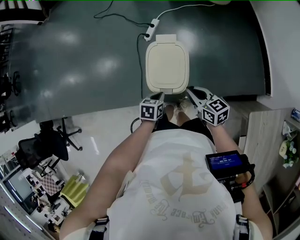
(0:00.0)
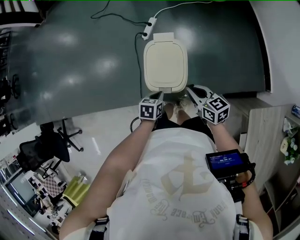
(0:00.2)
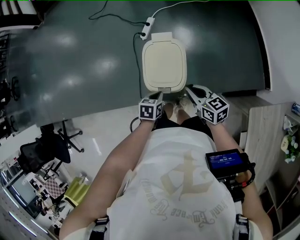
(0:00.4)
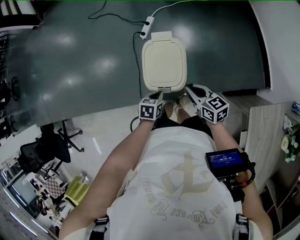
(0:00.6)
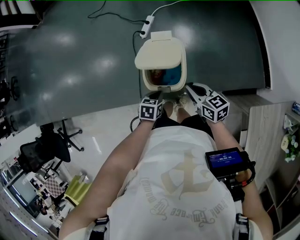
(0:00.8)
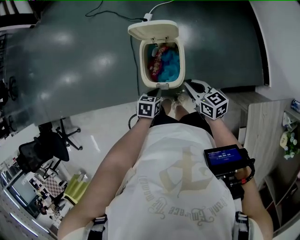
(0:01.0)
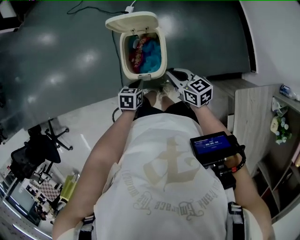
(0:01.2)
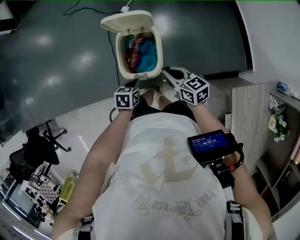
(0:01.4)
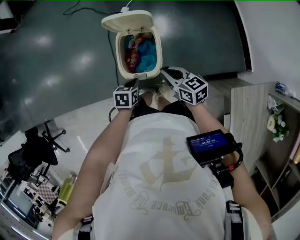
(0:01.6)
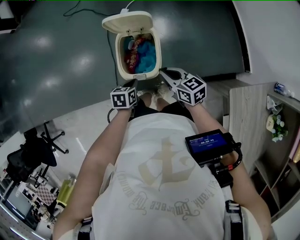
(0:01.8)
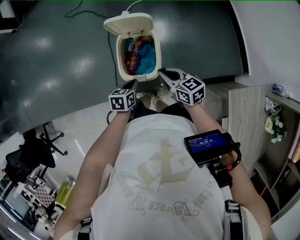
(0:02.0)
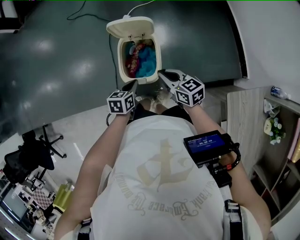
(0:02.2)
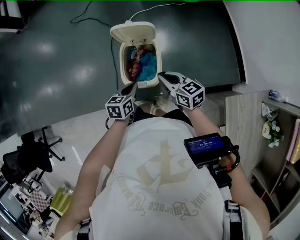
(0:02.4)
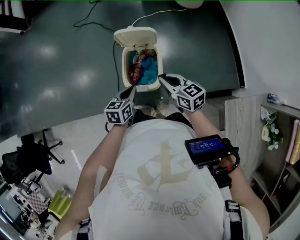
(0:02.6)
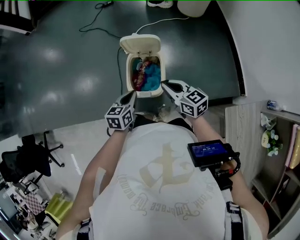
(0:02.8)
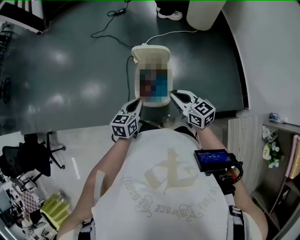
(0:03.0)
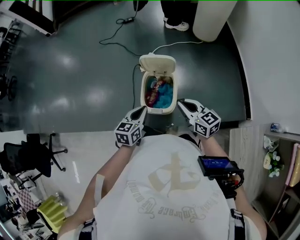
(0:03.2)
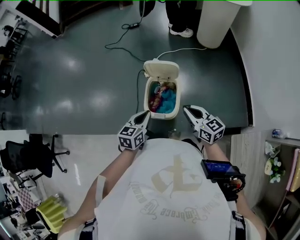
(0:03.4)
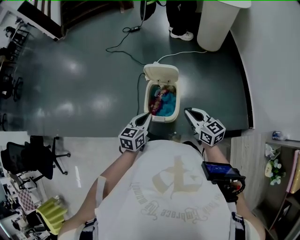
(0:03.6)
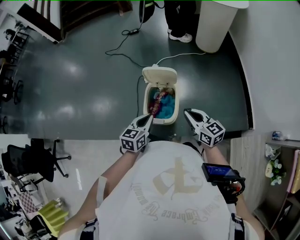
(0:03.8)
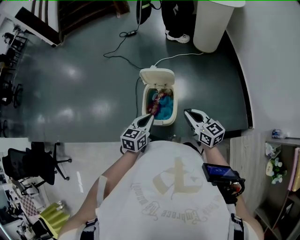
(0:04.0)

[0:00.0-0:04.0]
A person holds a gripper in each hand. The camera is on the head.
0:00.0 to 0:01.4: The grippers move only a little.
0:01.4 to 0:02.6: The right gripper goes some 10 cm upward; the left gripper is displaced upward by roughly 15 cm, and swivels approximately 20 degrees.
0:02.6 to 0:04.0: The right gripper is displaced upward and to the right by roughly 10 cm. The left gripper goes approximately 10 cm upward.

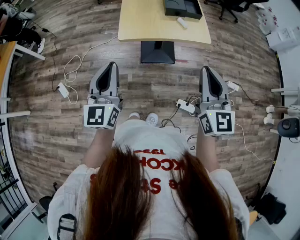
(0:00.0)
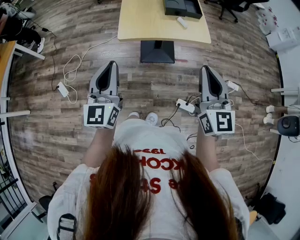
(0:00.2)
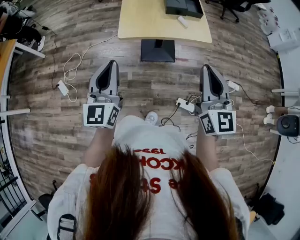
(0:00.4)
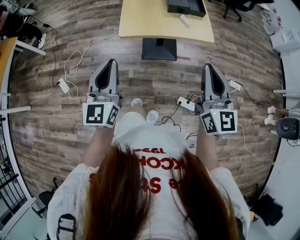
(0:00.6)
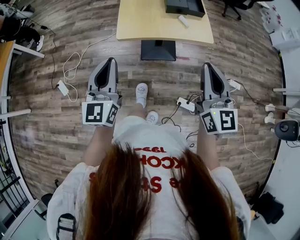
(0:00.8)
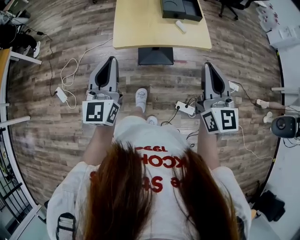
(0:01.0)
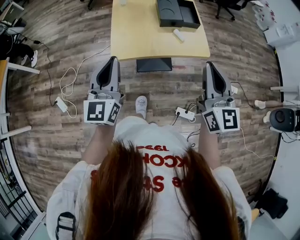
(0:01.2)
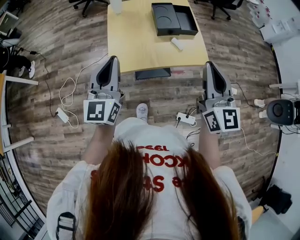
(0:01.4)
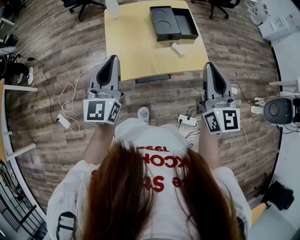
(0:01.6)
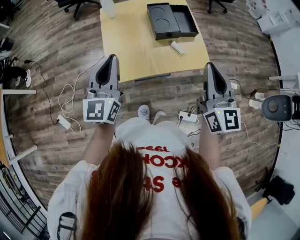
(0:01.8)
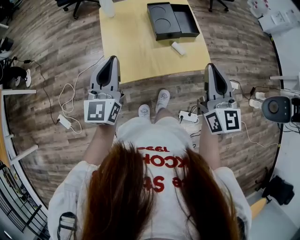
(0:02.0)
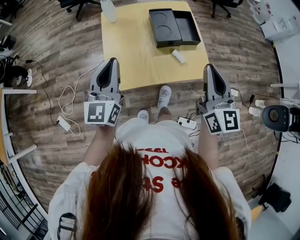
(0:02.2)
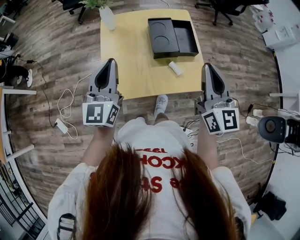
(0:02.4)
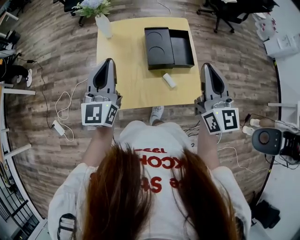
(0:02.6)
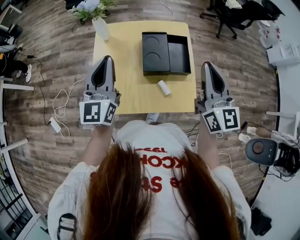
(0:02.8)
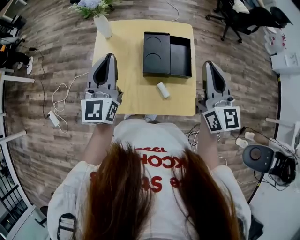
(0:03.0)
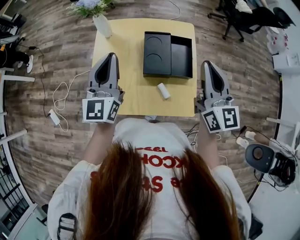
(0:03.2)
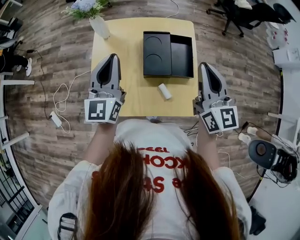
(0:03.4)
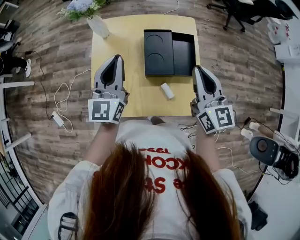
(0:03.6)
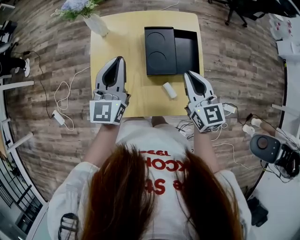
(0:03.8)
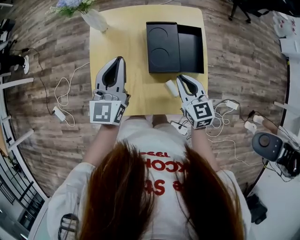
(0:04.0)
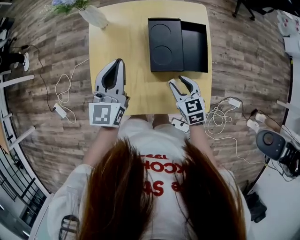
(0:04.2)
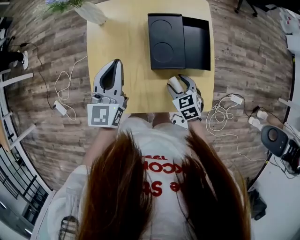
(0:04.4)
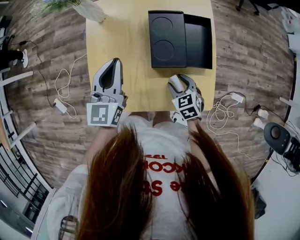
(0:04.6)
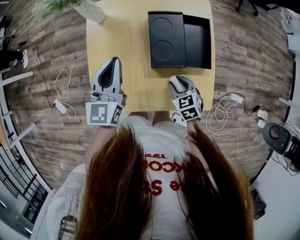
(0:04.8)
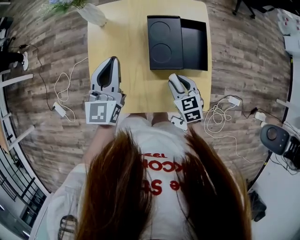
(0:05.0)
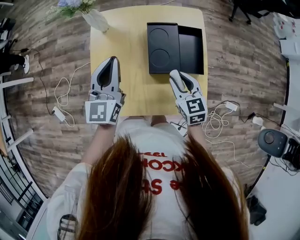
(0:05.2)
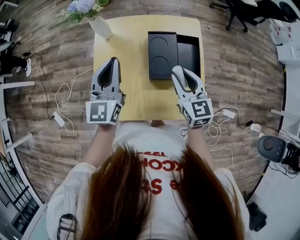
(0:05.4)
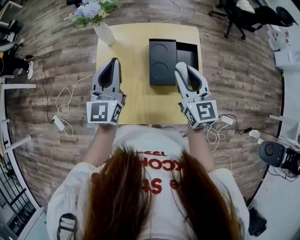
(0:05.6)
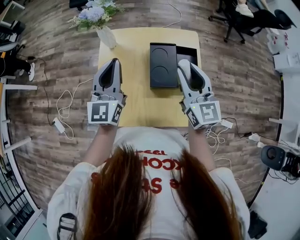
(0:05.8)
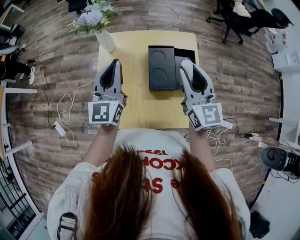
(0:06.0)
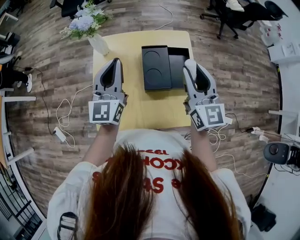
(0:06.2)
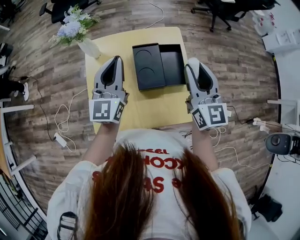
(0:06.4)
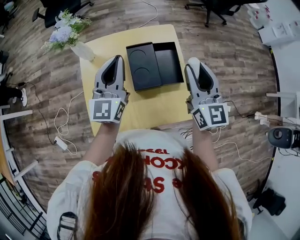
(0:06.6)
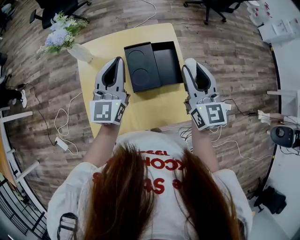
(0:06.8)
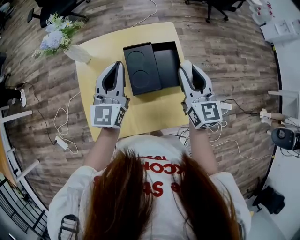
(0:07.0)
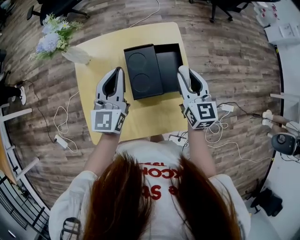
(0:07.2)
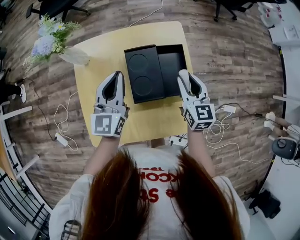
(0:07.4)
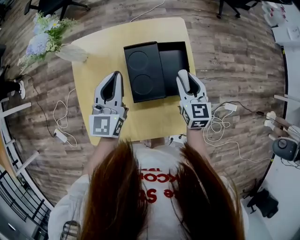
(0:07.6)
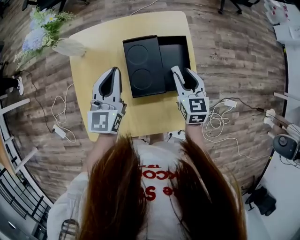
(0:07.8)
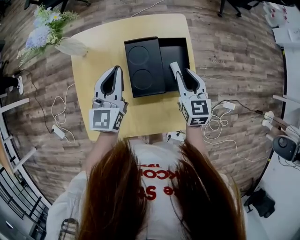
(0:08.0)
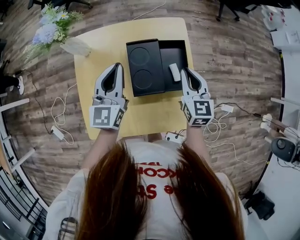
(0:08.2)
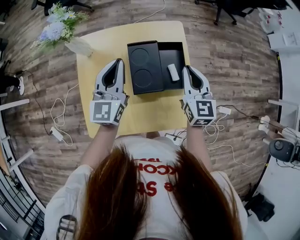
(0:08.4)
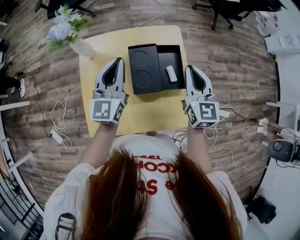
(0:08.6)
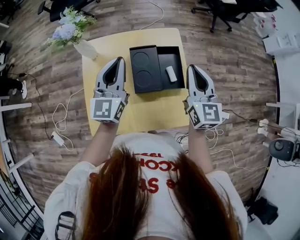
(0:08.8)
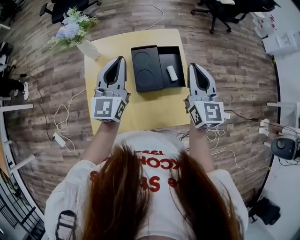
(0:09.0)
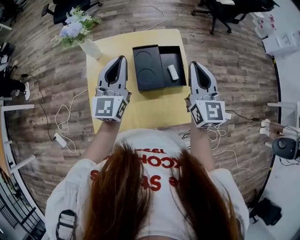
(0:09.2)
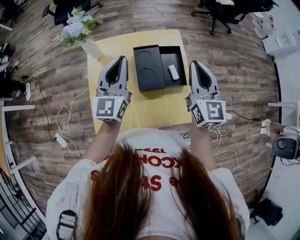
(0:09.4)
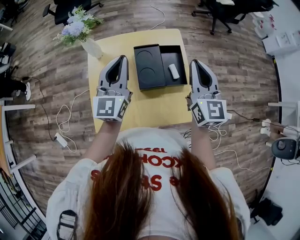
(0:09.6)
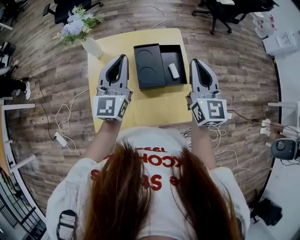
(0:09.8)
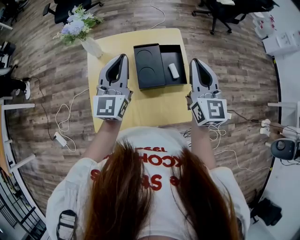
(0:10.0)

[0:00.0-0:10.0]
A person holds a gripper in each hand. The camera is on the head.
0:00.0 to 0:01.4: Both grippers move forward, roughly 20 cm.
0:01.4 to 0:02.8: The two grippers go some 25 cm forward.
0:02.8 to 0:04.2: The left gripper is displaced downward by some 10 cm. The right gripper is displaced downward by some 30 cm, tilts its fingers about 40 degrees downward, and opens up.
0:04.2 to 0:05.8: The left gripper goes roughly 10 cm upward. Meanwhile the right gripper is displaced upward by approximately 25 cm, and tips its fingers upward by approximately 40 degrees.
0:05.8 to 0:07.2: The left gripper shifts about 15 cm to the right, downward and forward. The right gripper moves downward and to the right, about 15 cm.
0:07.2 to 0:08.6: The right gripper is displaced upward by about 5 cm, and closes up.
0:08.6 to 0:10.0: The right gripper heads upward, covering roughly 10 cm, while the left gripper moves roughly 5 cm.

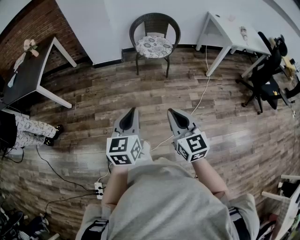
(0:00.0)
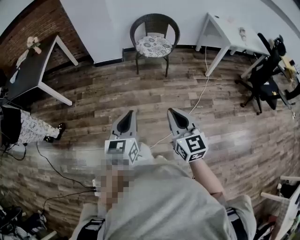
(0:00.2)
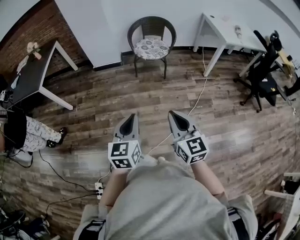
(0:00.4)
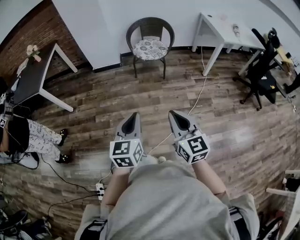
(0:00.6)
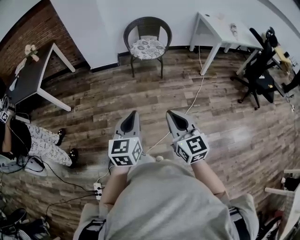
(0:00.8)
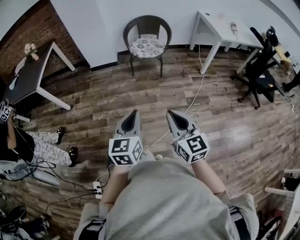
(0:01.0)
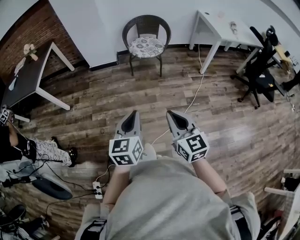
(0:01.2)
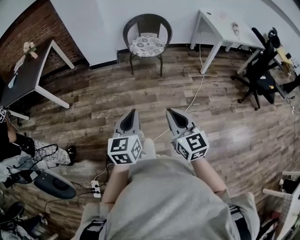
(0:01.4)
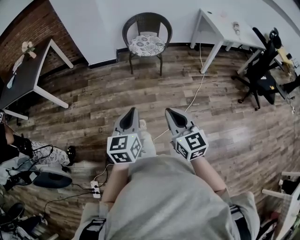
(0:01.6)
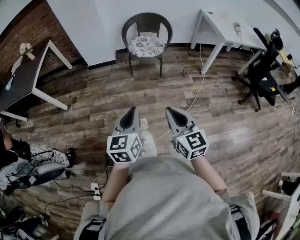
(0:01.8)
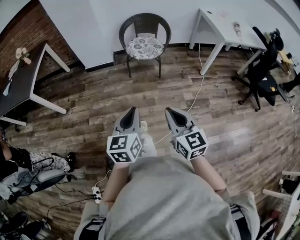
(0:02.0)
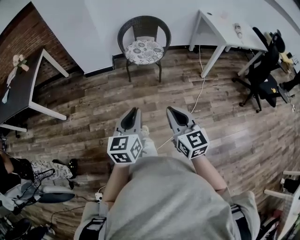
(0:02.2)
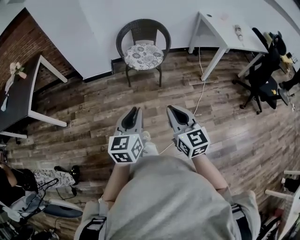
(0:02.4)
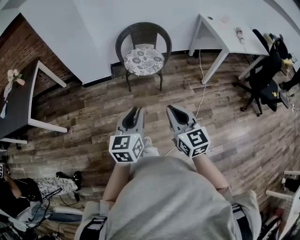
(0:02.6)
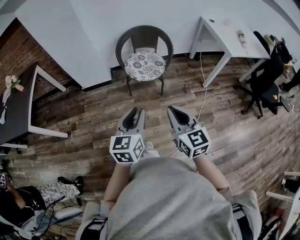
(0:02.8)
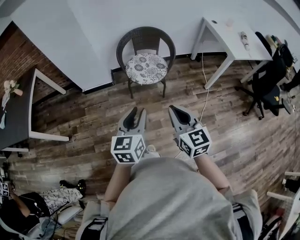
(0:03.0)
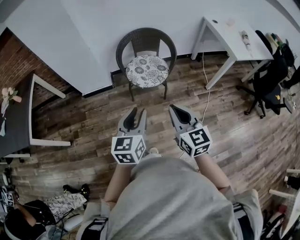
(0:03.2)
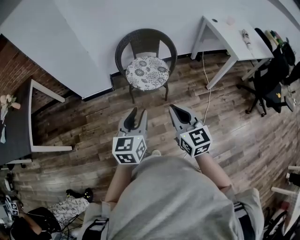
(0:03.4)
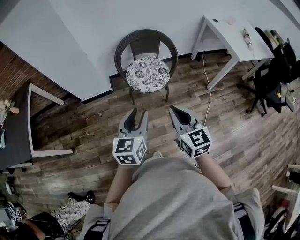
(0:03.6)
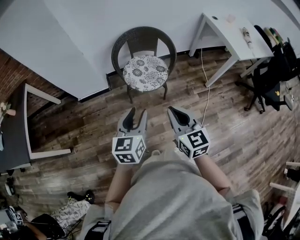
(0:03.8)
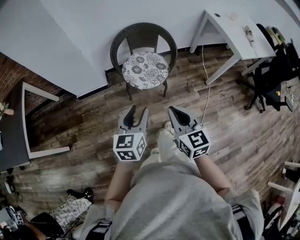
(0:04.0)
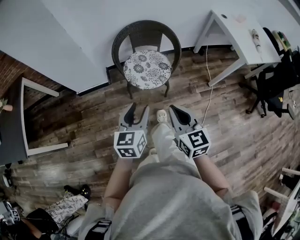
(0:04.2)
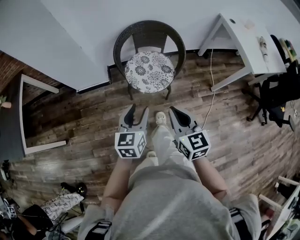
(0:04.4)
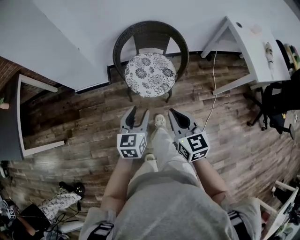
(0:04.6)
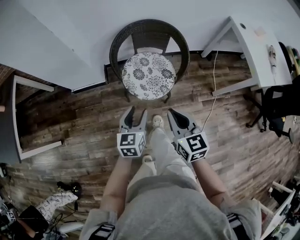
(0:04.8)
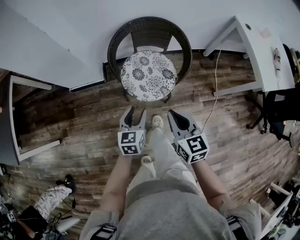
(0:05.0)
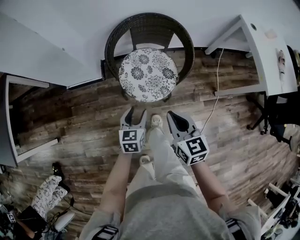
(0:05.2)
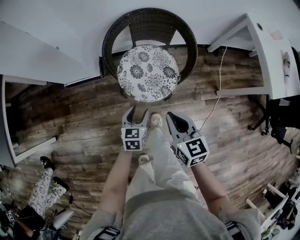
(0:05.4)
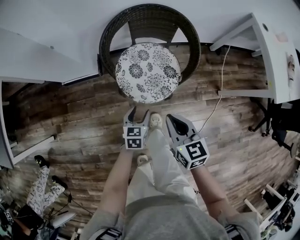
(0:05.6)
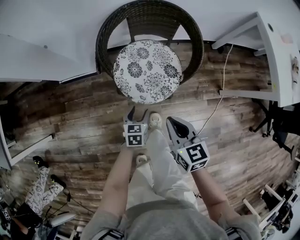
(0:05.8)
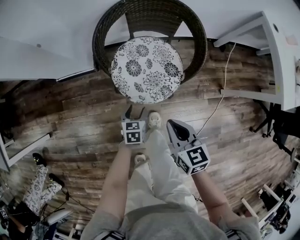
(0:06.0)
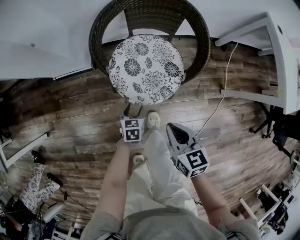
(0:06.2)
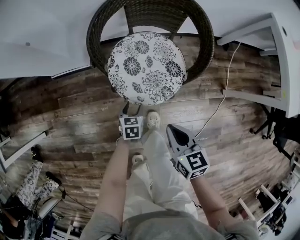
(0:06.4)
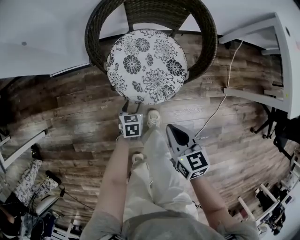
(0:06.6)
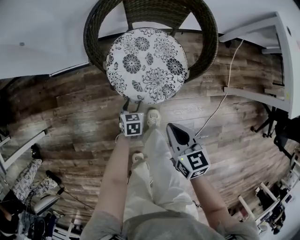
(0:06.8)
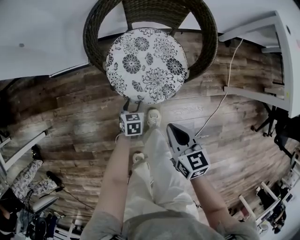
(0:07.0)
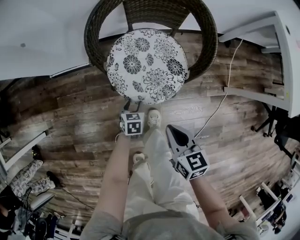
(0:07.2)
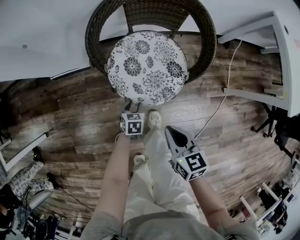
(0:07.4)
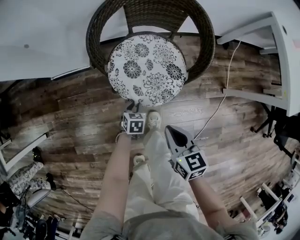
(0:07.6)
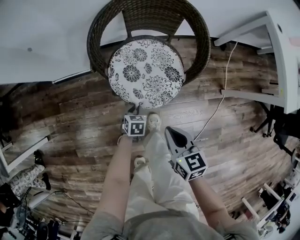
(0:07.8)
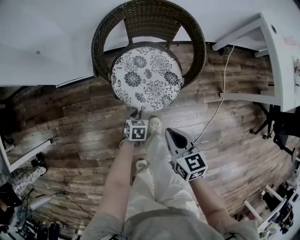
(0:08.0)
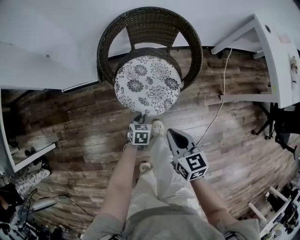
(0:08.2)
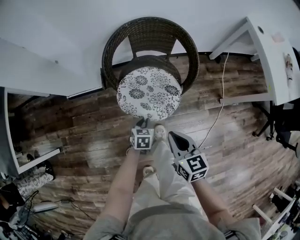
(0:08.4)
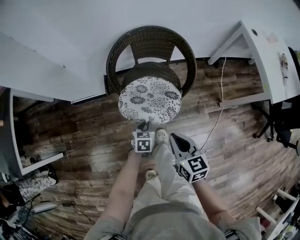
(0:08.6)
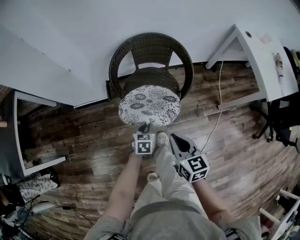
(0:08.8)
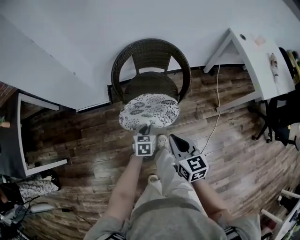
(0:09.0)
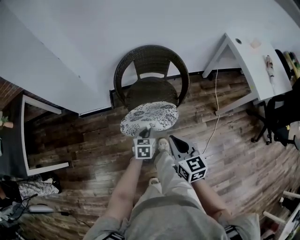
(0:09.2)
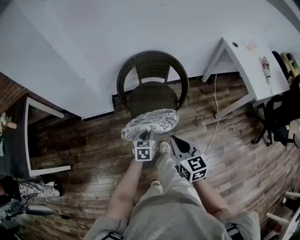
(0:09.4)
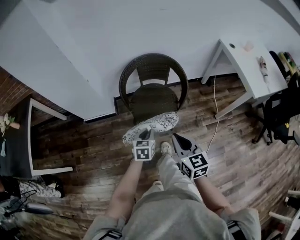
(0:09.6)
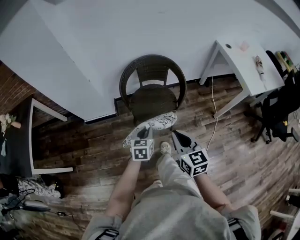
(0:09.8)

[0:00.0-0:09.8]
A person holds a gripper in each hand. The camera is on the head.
0:00.0 to 0:01.4: The grippers both shift backward and to the right by approximately 10 cm.
0:01.4 to 0:02.8: Both grippers move forward, some 35 cm.
0:02.8 to 0:04.2: The grippers both shift forward by about 25 cm. The left gripper opens its fingers.
0:04.2 to 0:05.6: The left gripper moves downward and forward, approximately 40 cm, and rotates roughly 20 degrees, while the right gripper travels forward and downward by about 30 cm.
0:05.6 to 0:07.0: Both grippers move downward, about 15 cm.
0:07.0 to 0:08.4: Both grippers move upward, approximately 15 cm. The left gripper closes.
0:08.4 to 0:09.8: The left gripper shifts approximately 25 cm upward. The right gripper is displaced upward and backward by roughly 25 cm.
